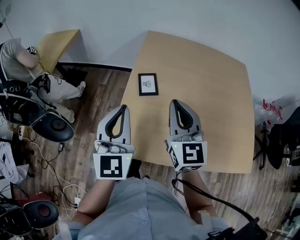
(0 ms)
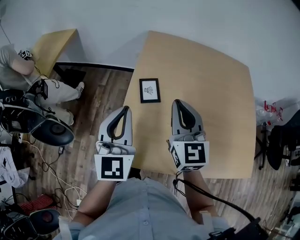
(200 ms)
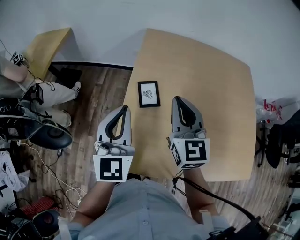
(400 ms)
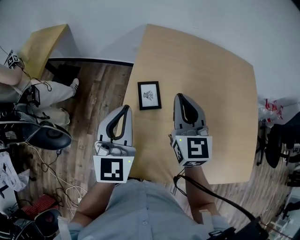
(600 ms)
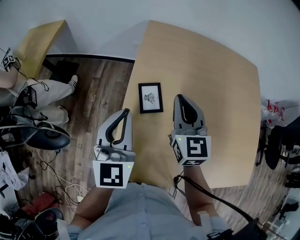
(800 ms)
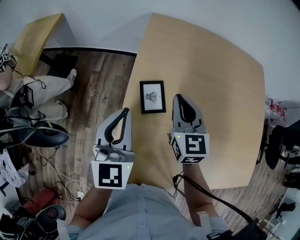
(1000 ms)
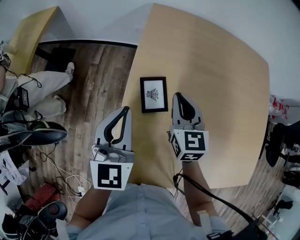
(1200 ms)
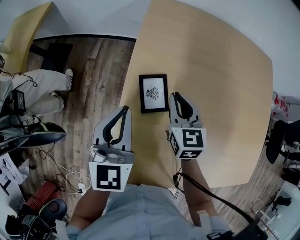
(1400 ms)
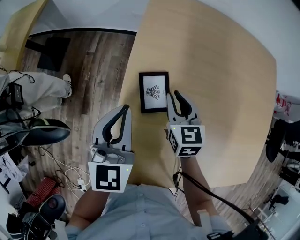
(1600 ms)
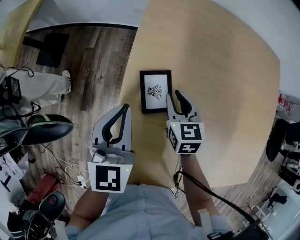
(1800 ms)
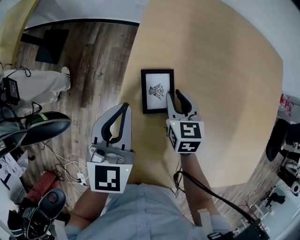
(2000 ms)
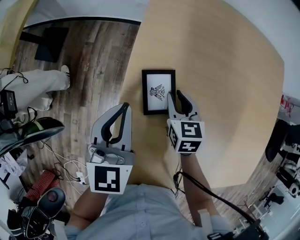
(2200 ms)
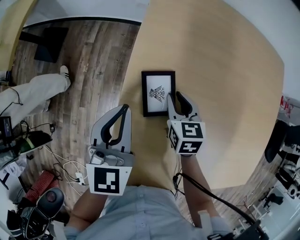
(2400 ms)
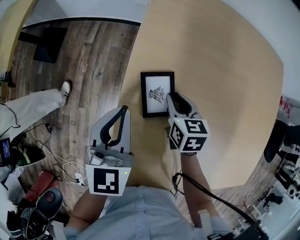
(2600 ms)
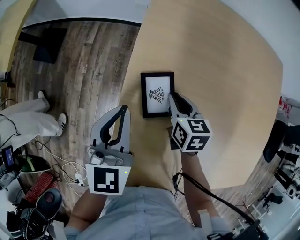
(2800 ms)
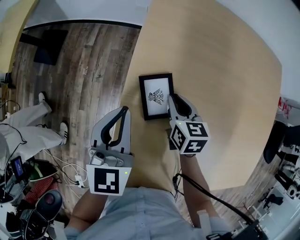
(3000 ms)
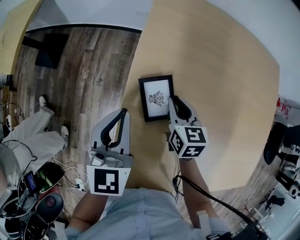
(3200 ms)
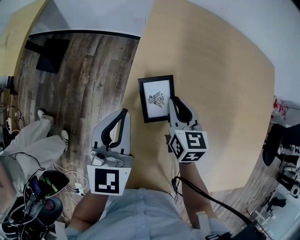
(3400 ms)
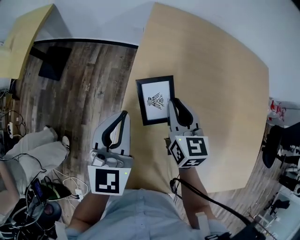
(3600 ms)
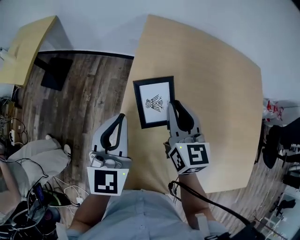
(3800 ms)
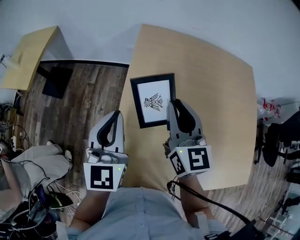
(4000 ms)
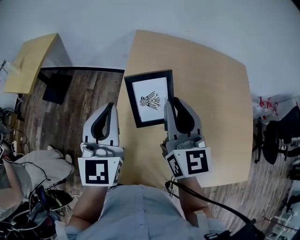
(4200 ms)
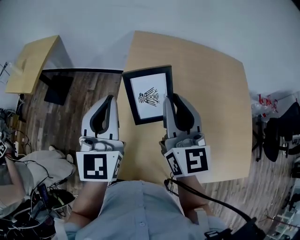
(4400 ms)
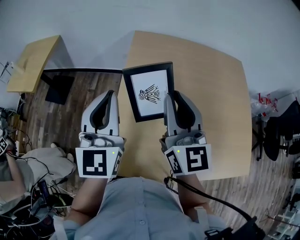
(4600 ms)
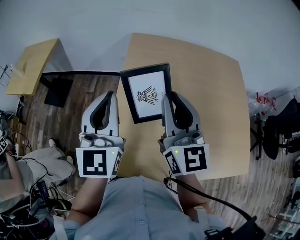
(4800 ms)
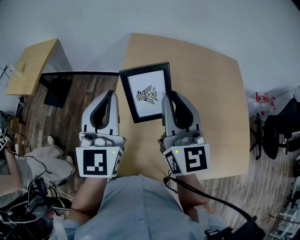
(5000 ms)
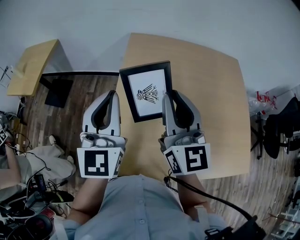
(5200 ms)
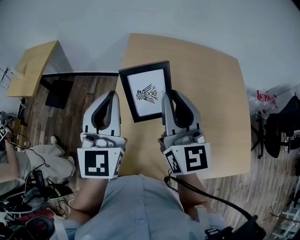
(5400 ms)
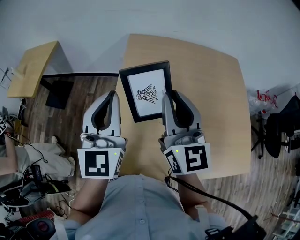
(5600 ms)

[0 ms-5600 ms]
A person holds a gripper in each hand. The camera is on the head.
0 ms to 1400 ms: The right gripper goes about 25 cm downward and forward, and changes its angle by about 30 degrees. The left gripper is displaced forward and downward by some 20 cm, and rotates approximately 20 degrees.
1400 ms to 2800 ms: The right gripper shifts about 10 cm downward, and changes its angle by approximately 20 degrees.
2800 ms to 4200 ms: The right gripper shifts approximately 30 cm upward, and points its fingers some 40 degrees further upward; the left gripper goes about 15 cm upward, and turns by roughly 30 degrees.

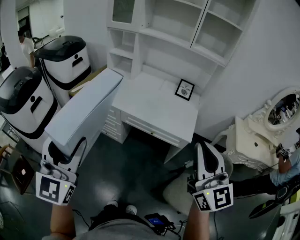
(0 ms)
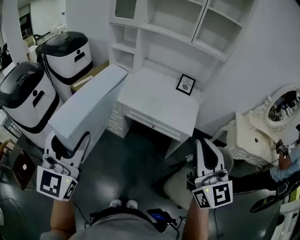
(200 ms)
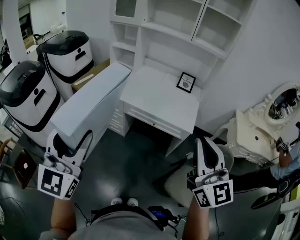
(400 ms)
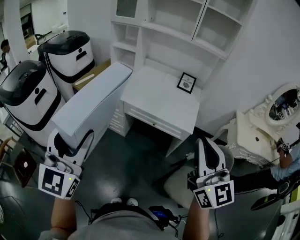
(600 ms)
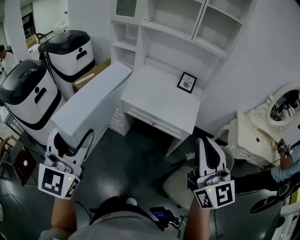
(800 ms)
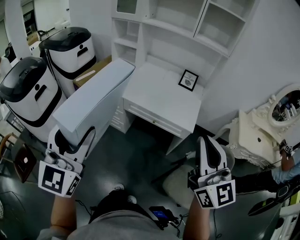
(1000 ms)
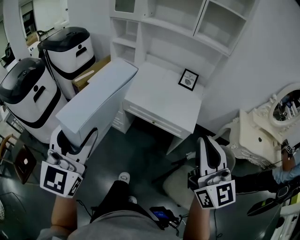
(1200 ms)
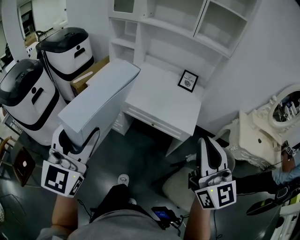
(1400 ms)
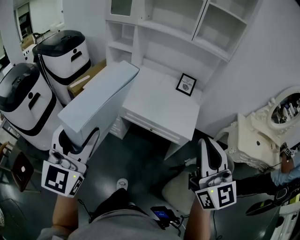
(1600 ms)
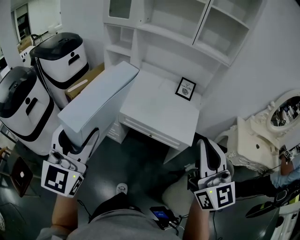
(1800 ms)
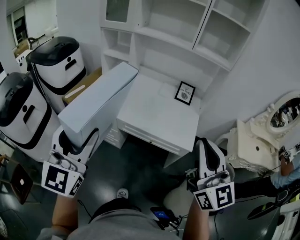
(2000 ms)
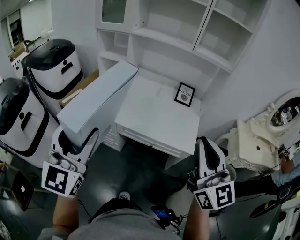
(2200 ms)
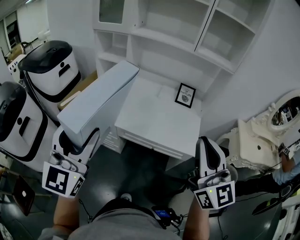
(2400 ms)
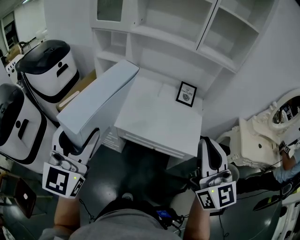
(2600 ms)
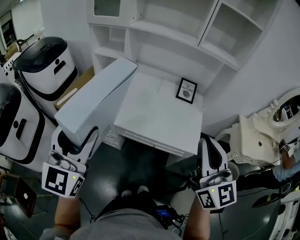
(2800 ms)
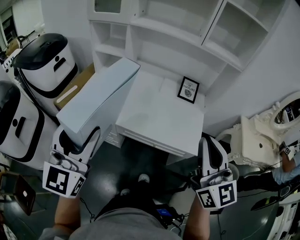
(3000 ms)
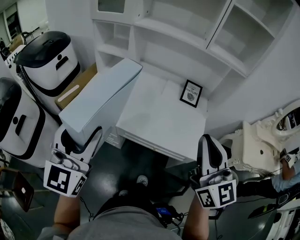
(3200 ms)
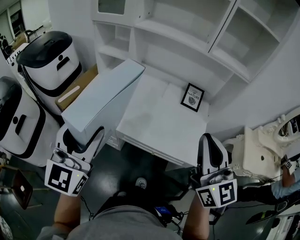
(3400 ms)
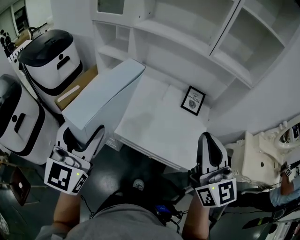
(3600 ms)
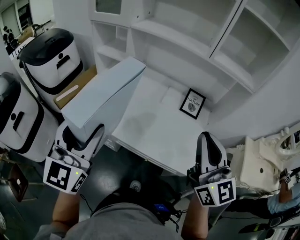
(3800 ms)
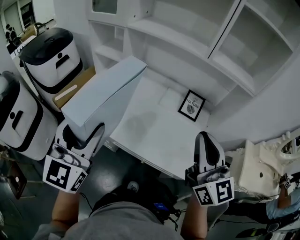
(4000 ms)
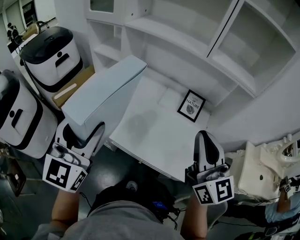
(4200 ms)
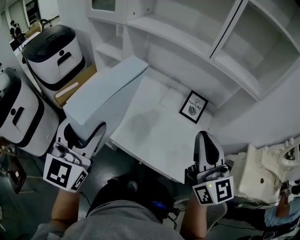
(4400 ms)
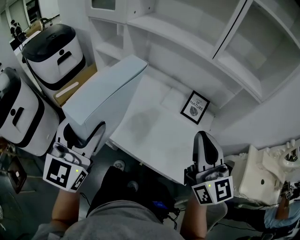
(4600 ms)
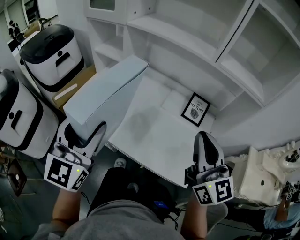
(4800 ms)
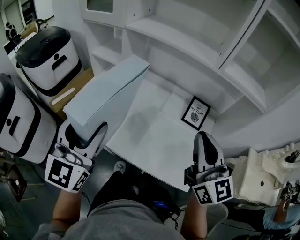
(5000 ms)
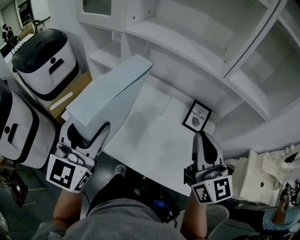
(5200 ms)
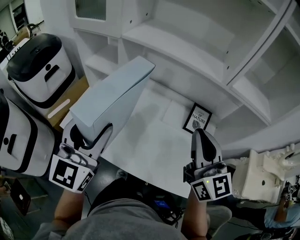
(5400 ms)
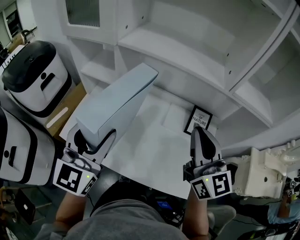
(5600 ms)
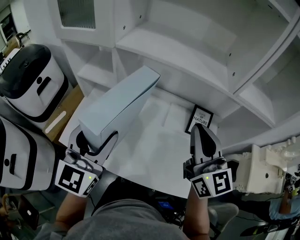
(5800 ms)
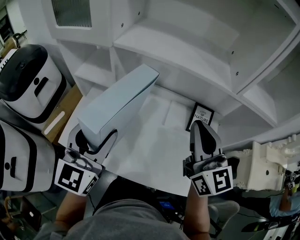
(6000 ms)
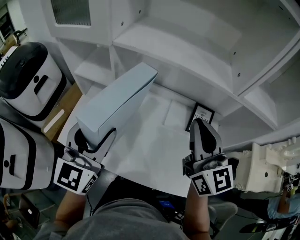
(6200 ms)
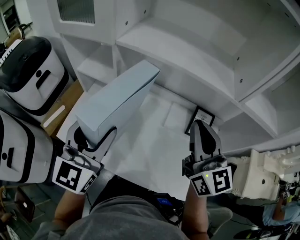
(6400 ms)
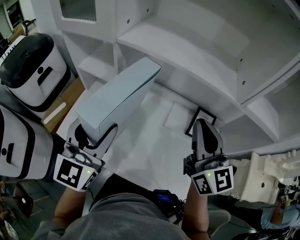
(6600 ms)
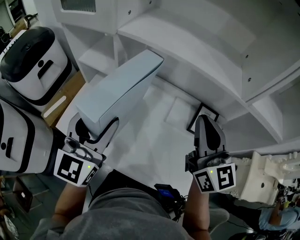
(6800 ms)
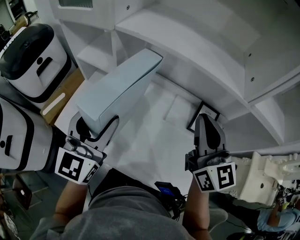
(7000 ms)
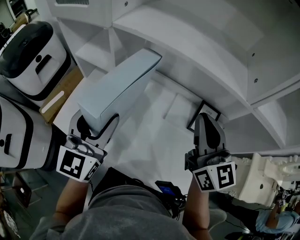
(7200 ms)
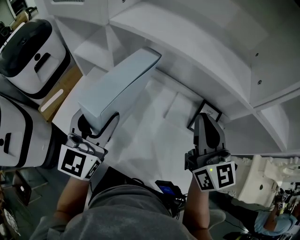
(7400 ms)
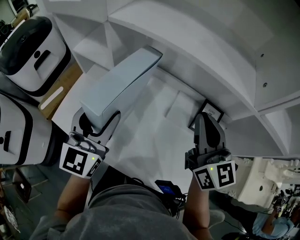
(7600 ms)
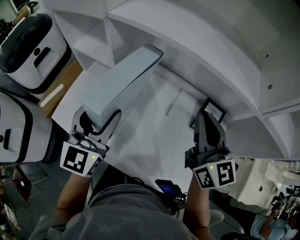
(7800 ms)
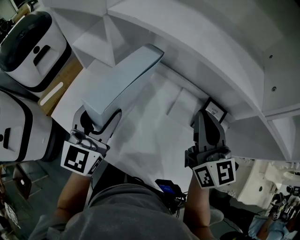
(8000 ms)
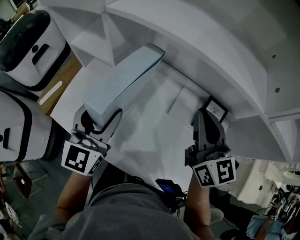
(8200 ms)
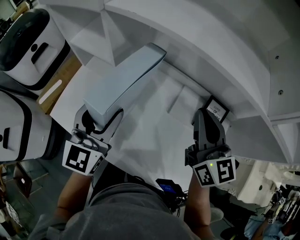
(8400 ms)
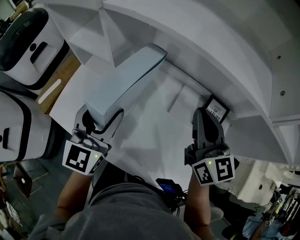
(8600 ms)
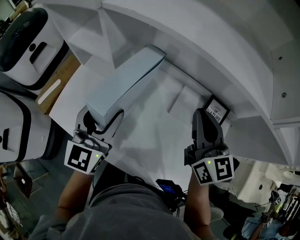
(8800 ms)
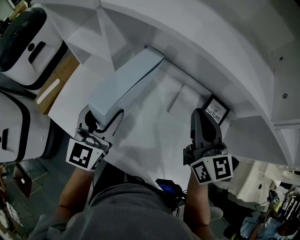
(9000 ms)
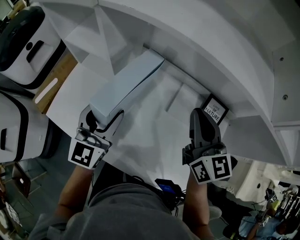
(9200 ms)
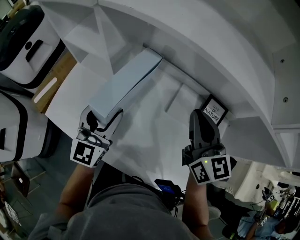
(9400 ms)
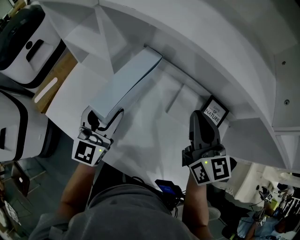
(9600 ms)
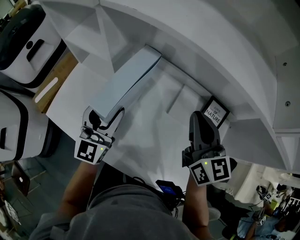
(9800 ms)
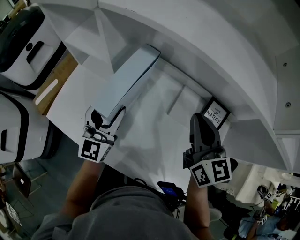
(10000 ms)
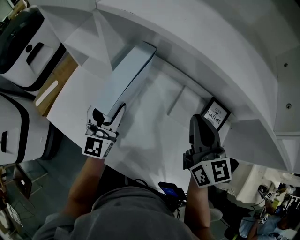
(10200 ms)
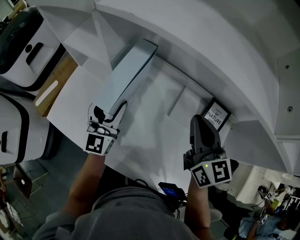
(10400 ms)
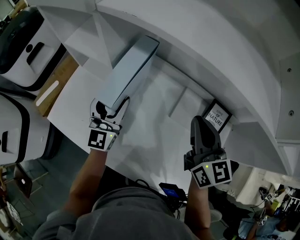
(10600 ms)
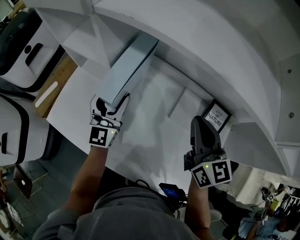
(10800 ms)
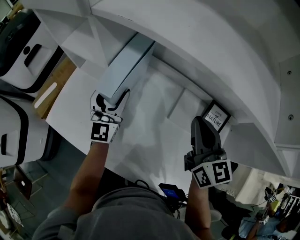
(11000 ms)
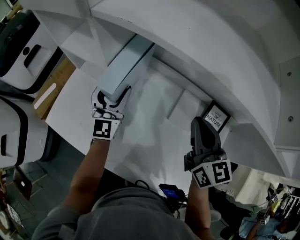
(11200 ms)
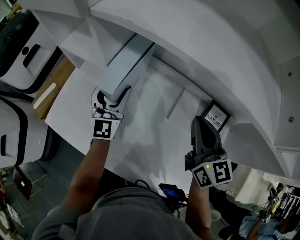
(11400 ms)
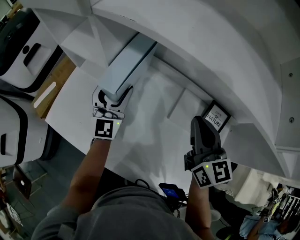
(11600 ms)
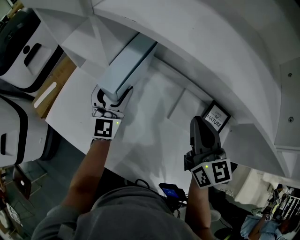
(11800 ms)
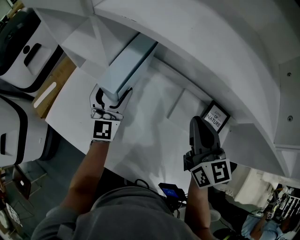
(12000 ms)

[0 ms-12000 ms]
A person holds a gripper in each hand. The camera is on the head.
0 ms to 1600 ms: The left gripper travels to the right by about 5 cm.
1600 ms to 3000 ms: The grippers both shift forward by approximately 20 cm.
3000 ms to 4400 ms: The left gripper travels to the right and forward by some 20 cm. Meanwhile the right gripper goes approximately 20 cm forward and to the right.
4400 ms to 6000 ms: The left gripper travels forward by some 25 cm; the right gripper shifts about 25 cm forward and to the left.
6000 ms to 7600 ms: The left gripper moves downward and forward, some 10 cm. The right gripper heads forward and downward, covering roughly 10 cm.
7600 ms to 9000 ms: Both grippers move downward, about 5 cm.
9000 ms to 10400 ms: The left gripper moves downward and forward, roughly 10 cm.
10400 ms to 12000 ms: The left gripper moves forward, some 5 cm.

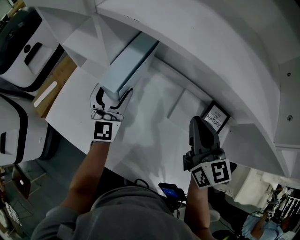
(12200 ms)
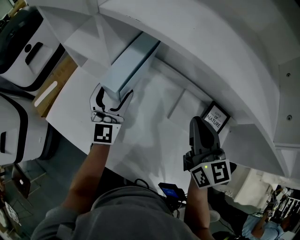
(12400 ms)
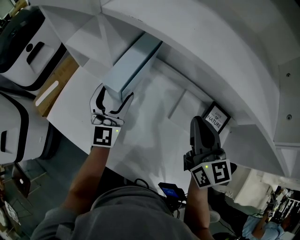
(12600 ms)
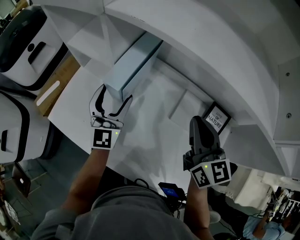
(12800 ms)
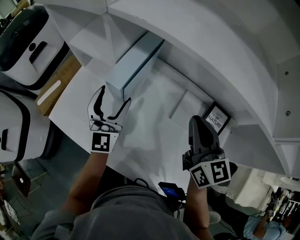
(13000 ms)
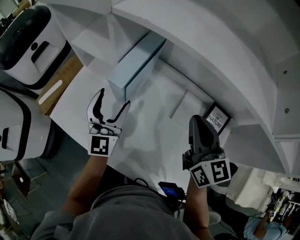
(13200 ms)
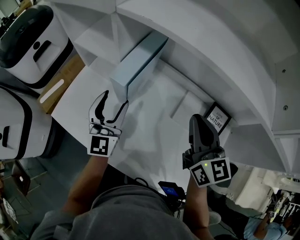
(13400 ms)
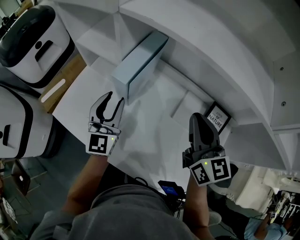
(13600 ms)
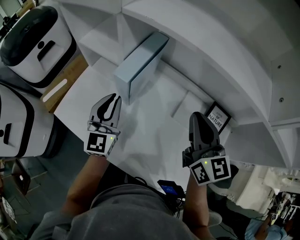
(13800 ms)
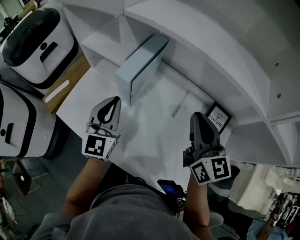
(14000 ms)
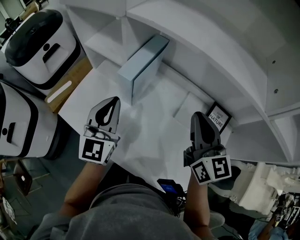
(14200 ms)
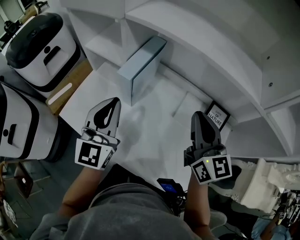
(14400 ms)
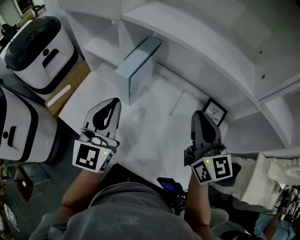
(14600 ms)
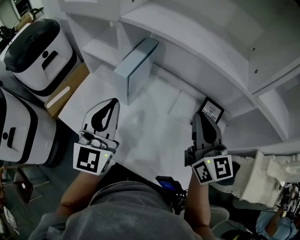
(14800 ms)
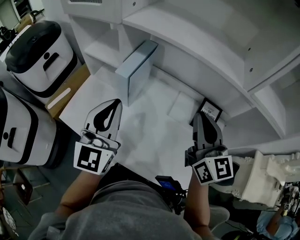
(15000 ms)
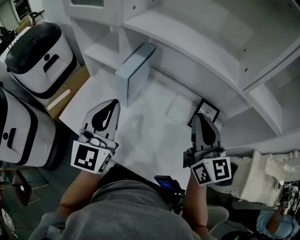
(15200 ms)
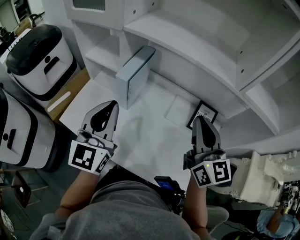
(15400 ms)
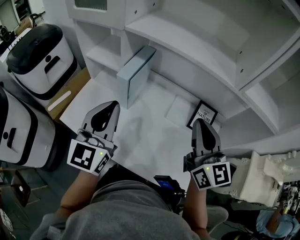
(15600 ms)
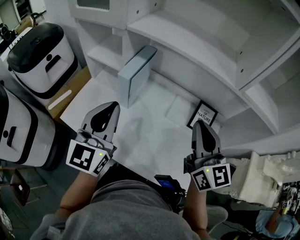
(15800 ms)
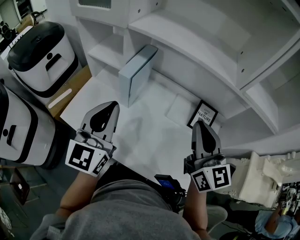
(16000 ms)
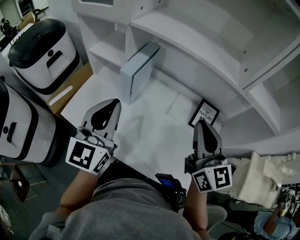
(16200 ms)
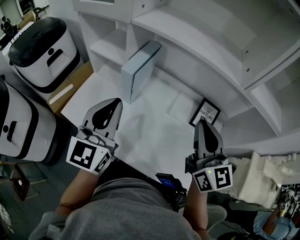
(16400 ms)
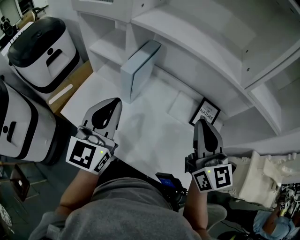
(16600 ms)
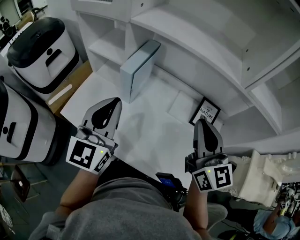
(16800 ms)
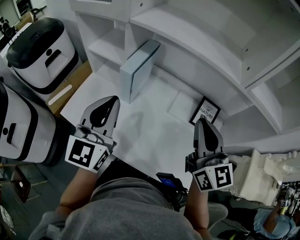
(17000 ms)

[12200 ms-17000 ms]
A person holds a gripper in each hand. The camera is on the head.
12200 ms to 13800 ms: The left gripper travels backward by about 10 cm, and closes.
13800 ms to 15400 ms: The right gripper moves backward and upward, roughly 15 cm. Meanwhile the left gripper moves upward and backward, some 20 cm.
15400 ms to 17000 ms: The grippers make only small movements.

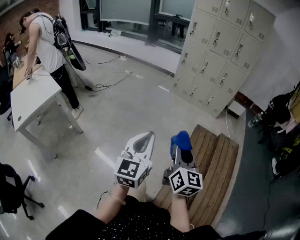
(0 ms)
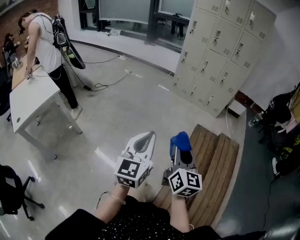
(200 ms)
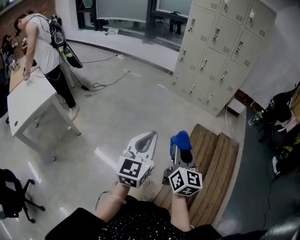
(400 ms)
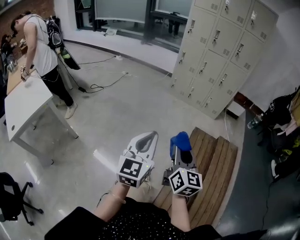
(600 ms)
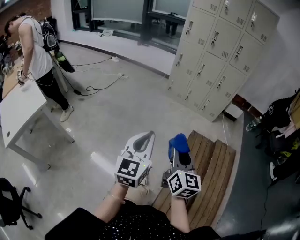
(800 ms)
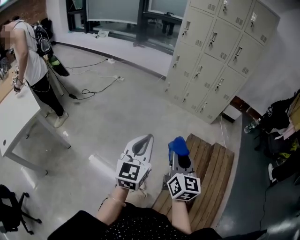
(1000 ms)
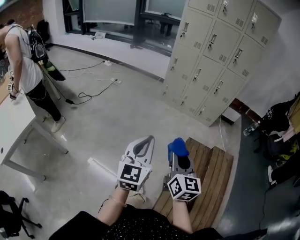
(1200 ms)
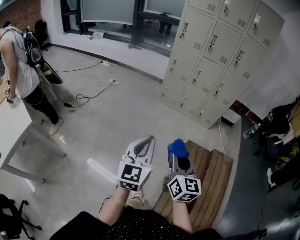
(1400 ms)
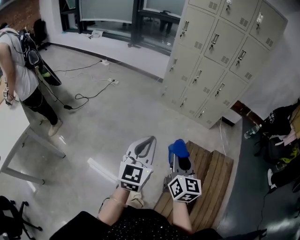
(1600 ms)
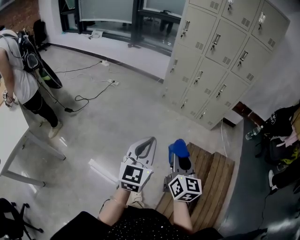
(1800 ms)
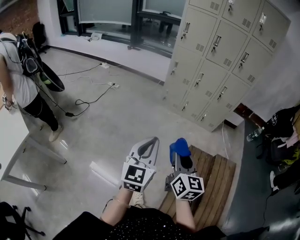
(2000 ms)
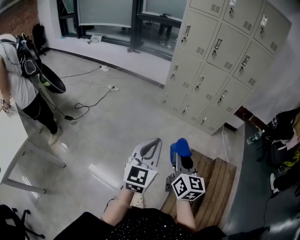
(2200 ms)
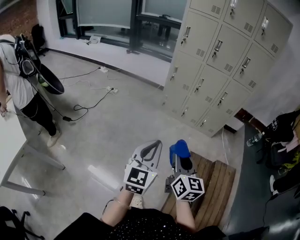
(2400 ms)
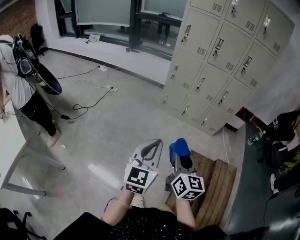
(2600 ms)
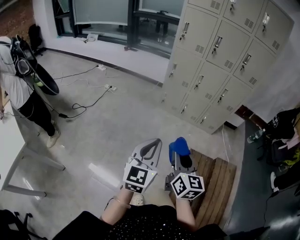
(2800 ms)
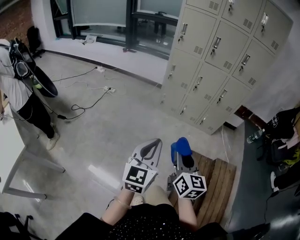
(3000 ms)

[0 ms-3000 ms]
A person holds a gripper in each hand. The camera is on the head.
0 ms to 1600 ms: The two grippers go approximately 35 cm forward.
1600 ms to 3000 ms: The two grippers go approximately 15 cm forward.
